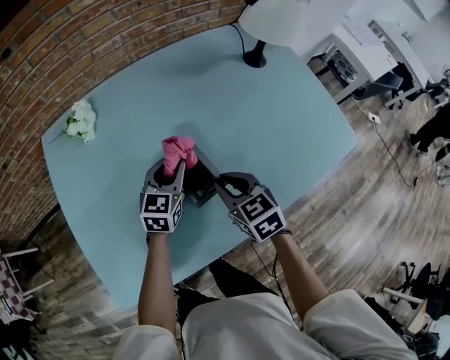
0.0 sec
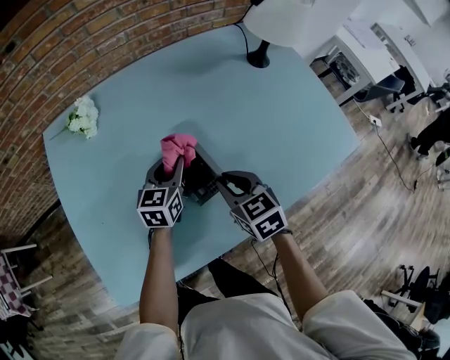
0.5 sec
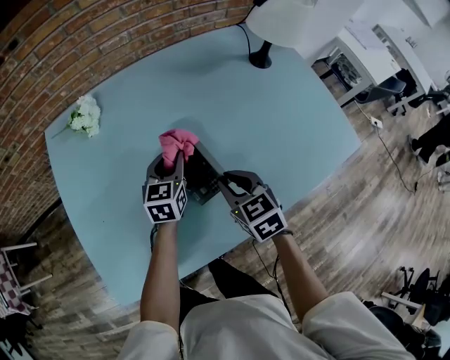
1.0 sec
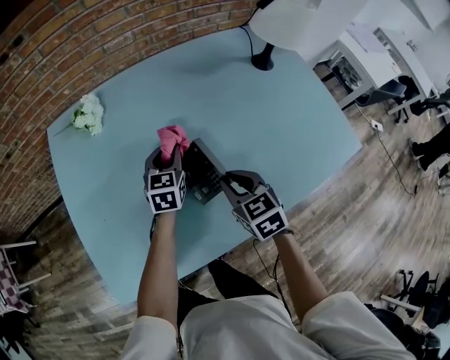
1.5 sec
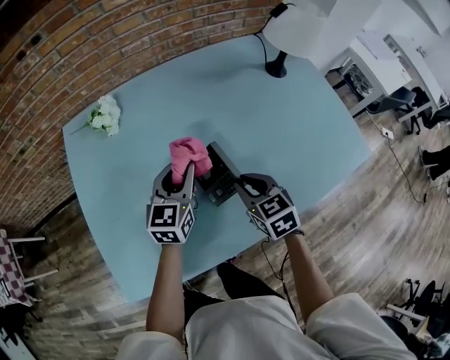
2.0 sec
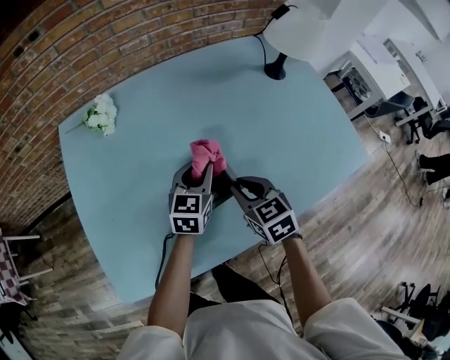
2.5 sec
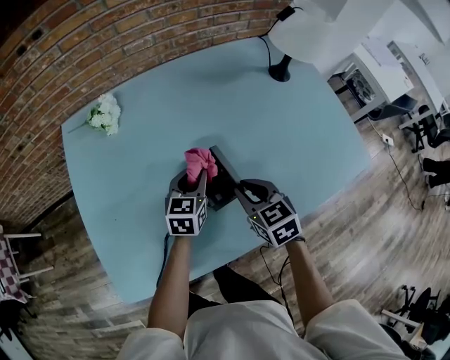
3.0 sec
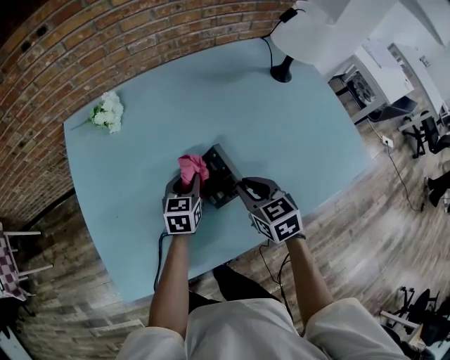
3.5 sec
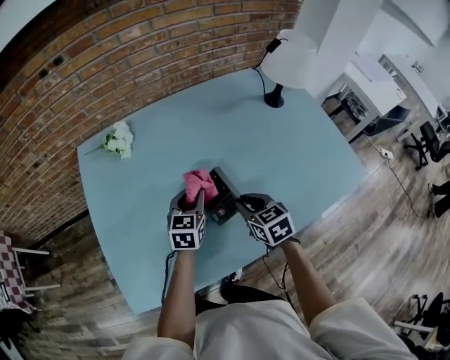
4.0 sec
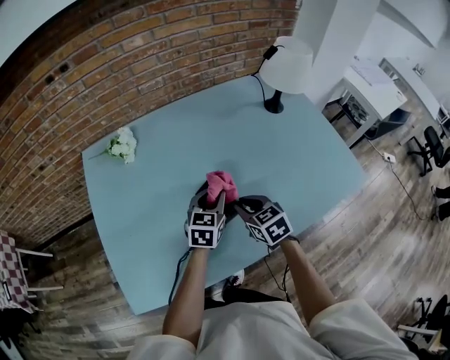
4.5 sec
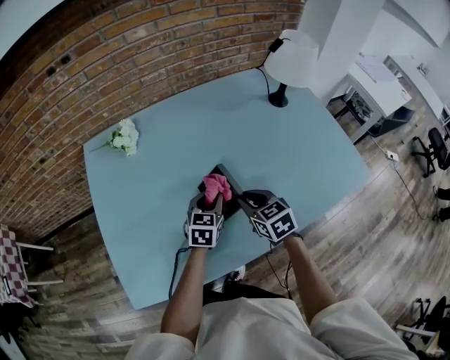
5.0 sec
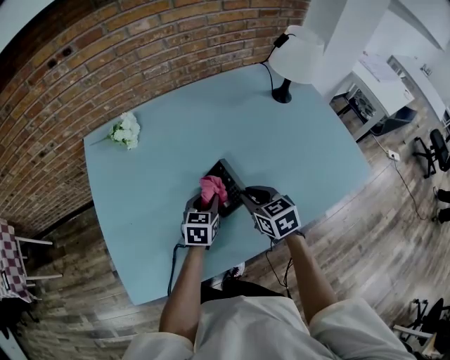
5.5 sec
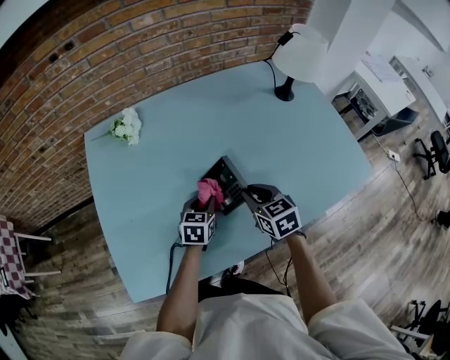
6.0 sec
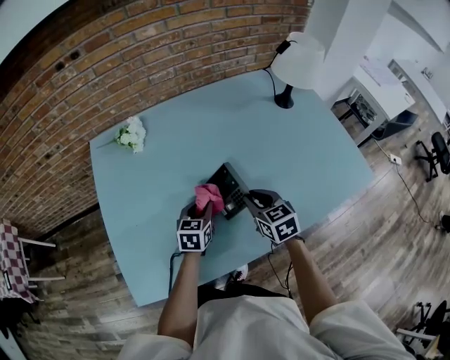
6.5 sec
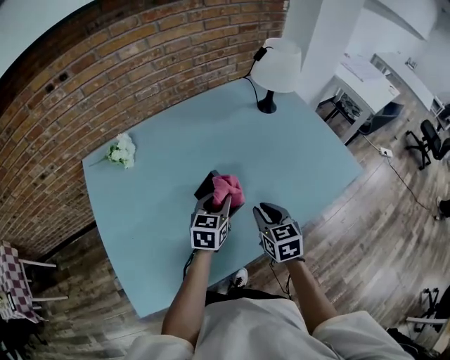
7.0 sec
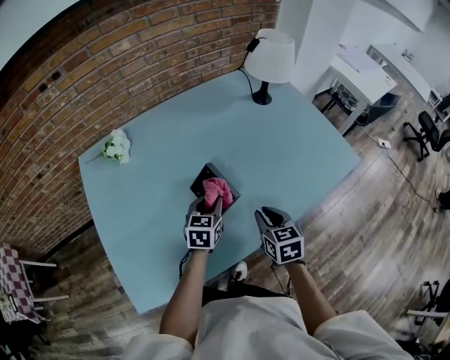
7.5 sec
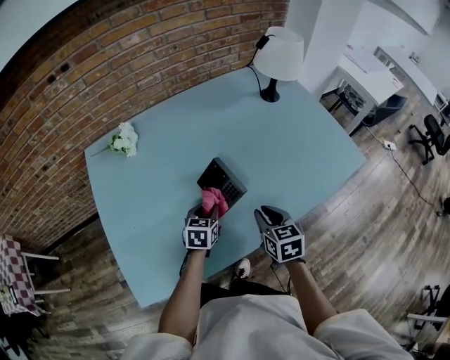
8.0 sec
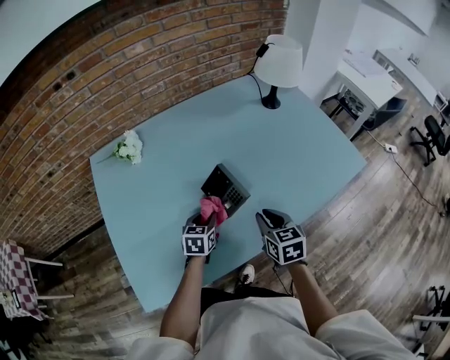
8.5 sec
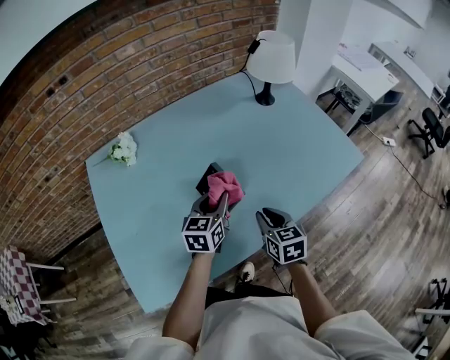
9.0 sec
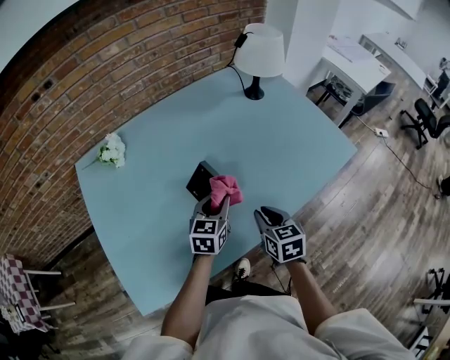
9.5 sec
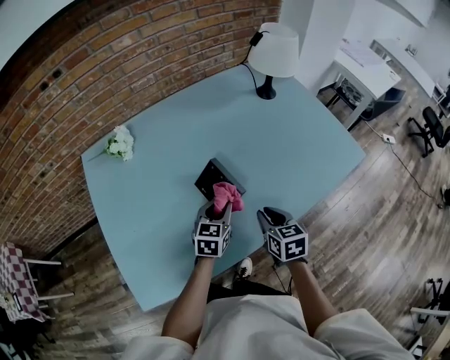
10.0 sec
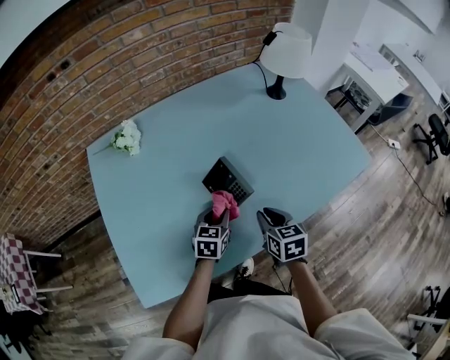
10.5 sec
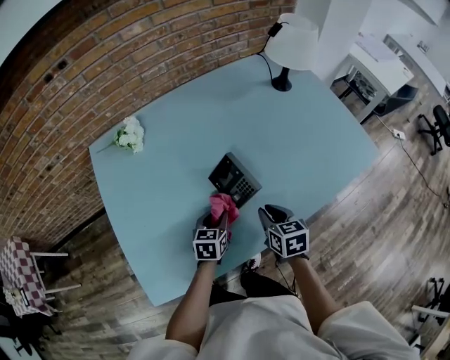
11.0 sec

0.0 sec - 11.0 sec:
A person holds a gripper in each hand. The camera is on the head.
0.0 sec - 2.0 sec: The left gripper is displaced upward by roughly 5 cm.
2.0 sec - 3.5 sec: The left gripper moves downward, approximately 10 cm.
3.5 sec - 5.5 sec: The left gripper moves some 10 cm upward and comes back.
5.5 sec - 7.5 sec: The right gripper goes roughly 10 cm backward and to the right, and changes its angle by roughly 20 degrees.
7.5 sec - 9.0 sec: The left gripper shifts approximately 5 cm upward.
9.0 sec - 11.0 sec: The left gripper travels downward and to the left by some 15 cm. Meanwhile the right gripper ends up about 5 cm from where it was.

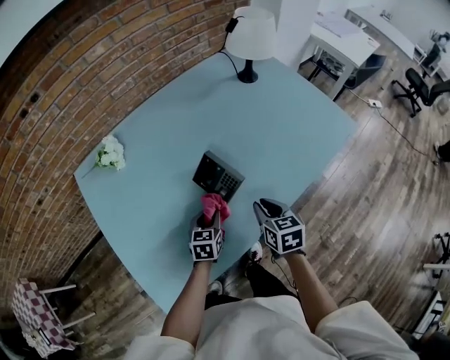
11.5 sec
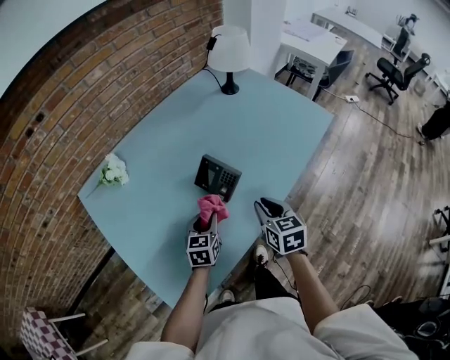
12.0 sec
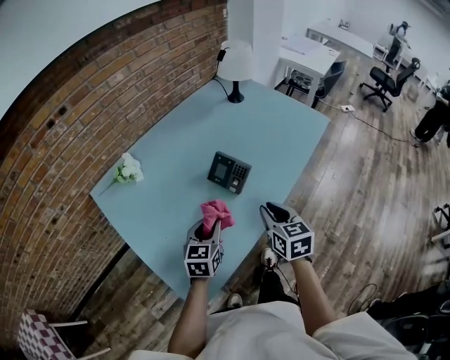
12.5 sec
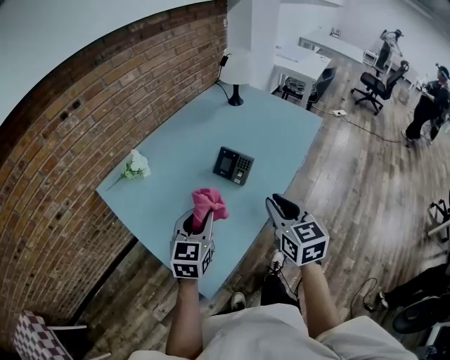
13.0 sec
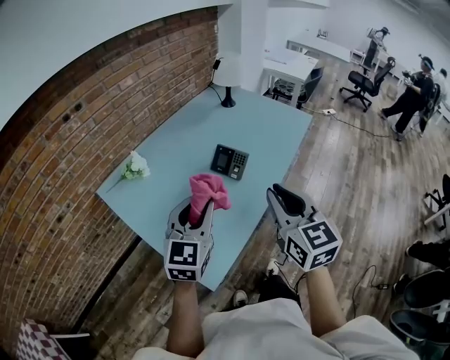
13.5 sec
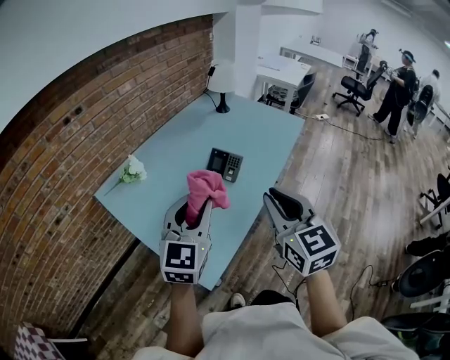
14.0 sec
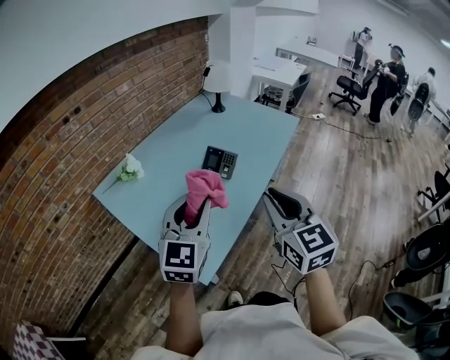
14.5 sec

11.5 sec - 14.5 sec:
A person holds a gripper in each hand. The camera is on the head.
11.5 sec - 13.0 sec: The left gripper goes roughly 30 cm upward, backward and to the left, and rotates roughly 30 degrees. Meanwhile the right gripper heads upward and backward, covering about 30 cm, and swivels roughly 30 degrees.
13.0 sec - 14.5 sec: The left gripper heads upward and backward, covering some 15 cm, while the right gripper moves backward and upward, roughly 15 cm.

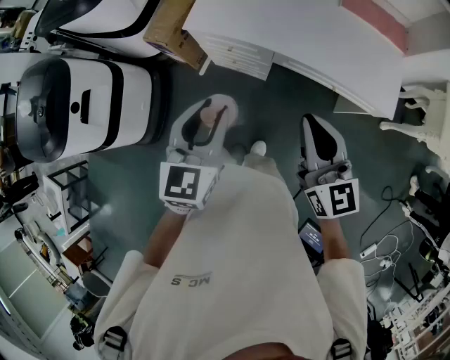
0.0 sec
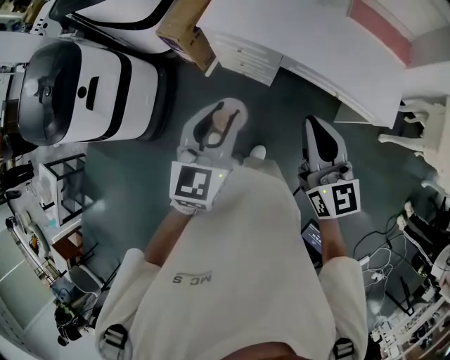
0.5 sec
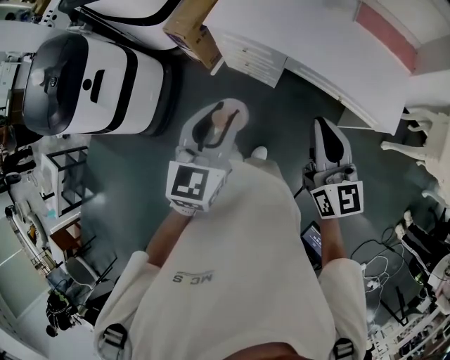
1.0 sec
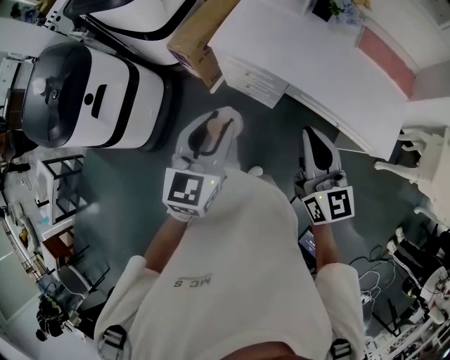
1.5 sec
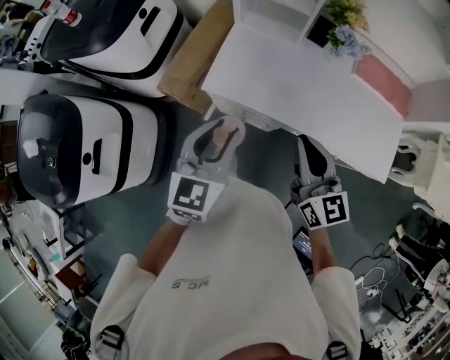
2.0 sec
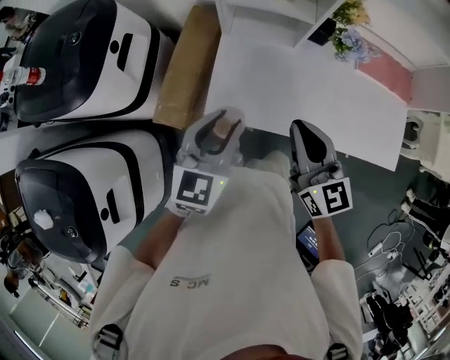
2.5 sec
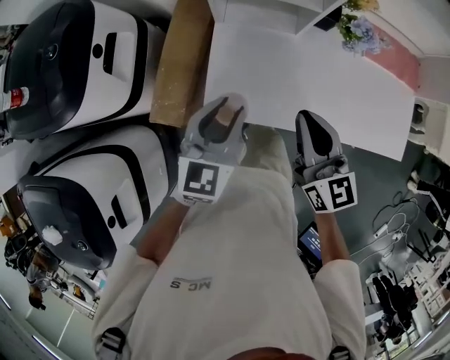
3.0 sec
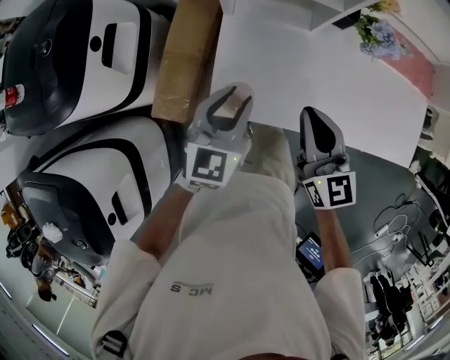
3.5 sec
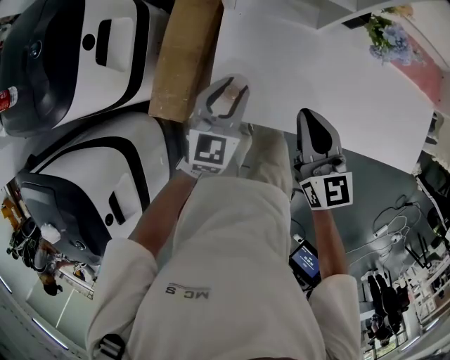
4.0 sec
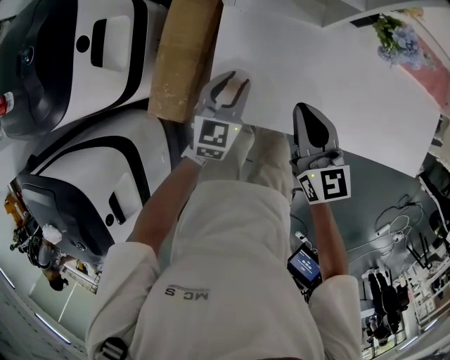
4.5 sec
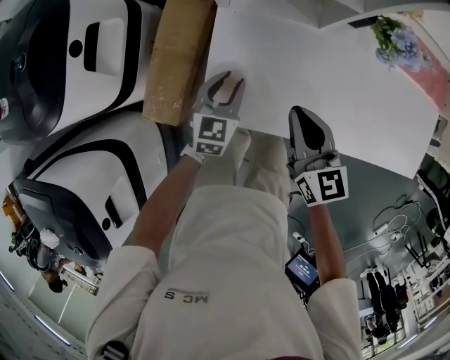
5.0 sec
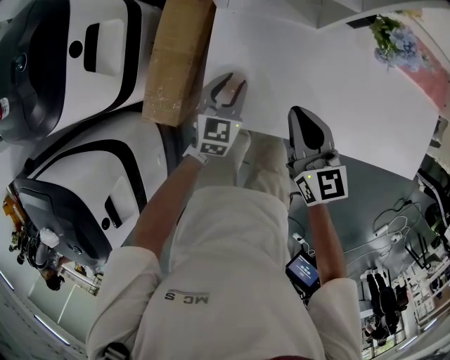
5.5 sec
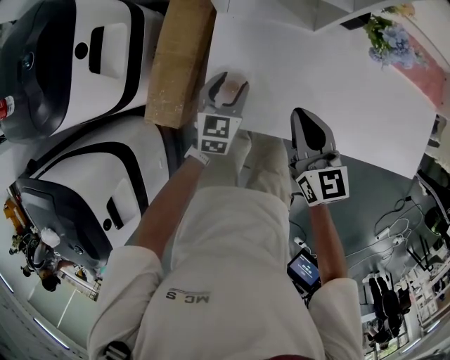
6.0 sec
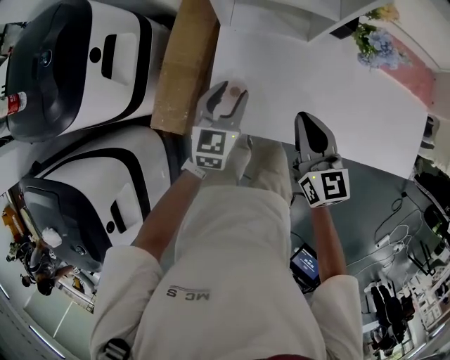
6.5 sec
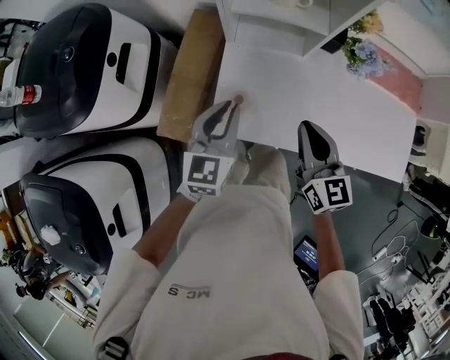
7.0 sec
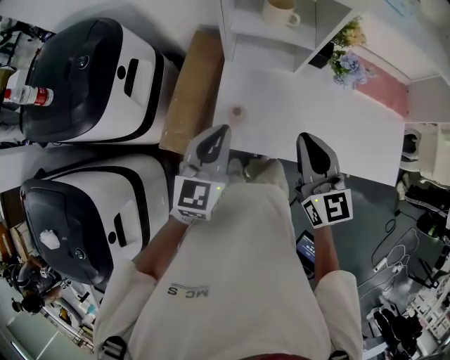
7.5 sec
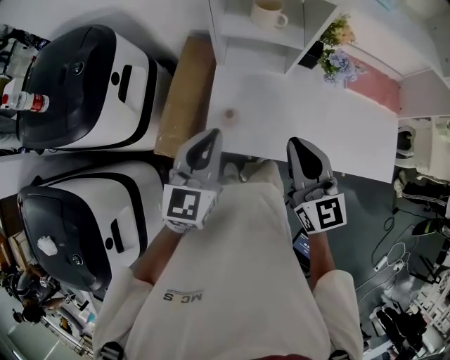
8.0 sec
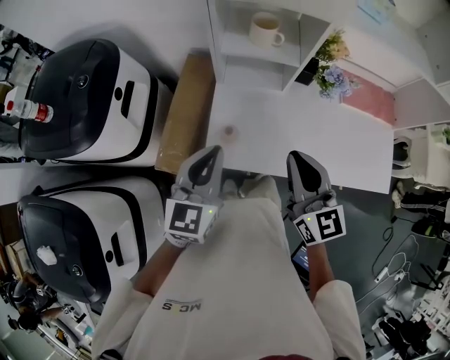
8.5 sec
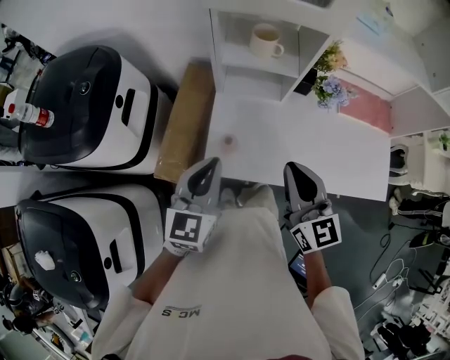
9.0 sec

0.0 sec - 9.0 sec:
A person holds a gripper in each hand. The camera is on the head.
0.0 sec - 2.0 sec: Both grippers move forward, some 20 cm.
2.0 sec - 4.5 sec: The left gripper shifts roughly 40 cm forward and downward. The right gripper shifts about 35 cm forward, downward and to the left.
4.5 sec - 7.0 sec: The right gripper goes about 10 cm upward. Meanwhile the left gripper is displaced upward by roughly 15 cm, and opens, then closes again.
7.0 sec - 9.0 sec: Both grippers travel together upward and backward, some 10 cm.

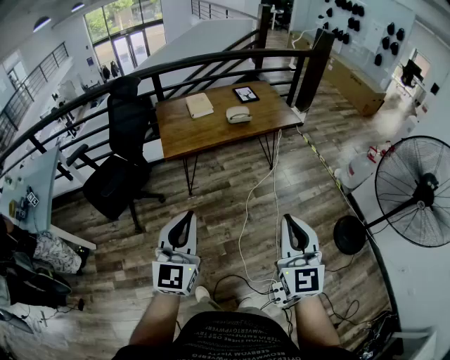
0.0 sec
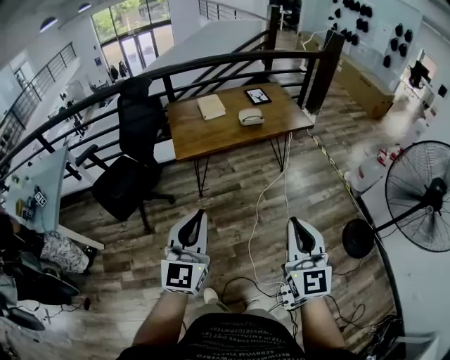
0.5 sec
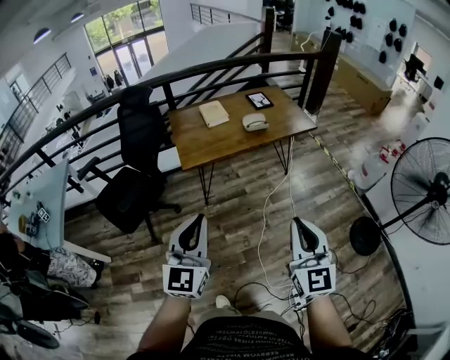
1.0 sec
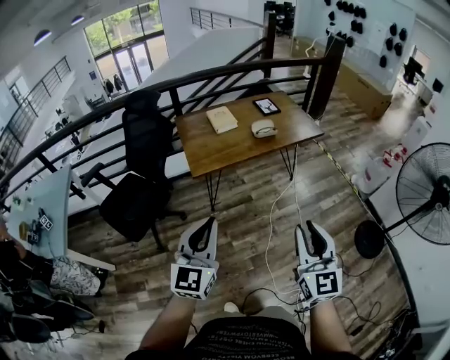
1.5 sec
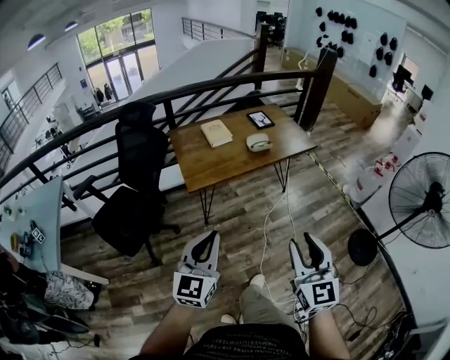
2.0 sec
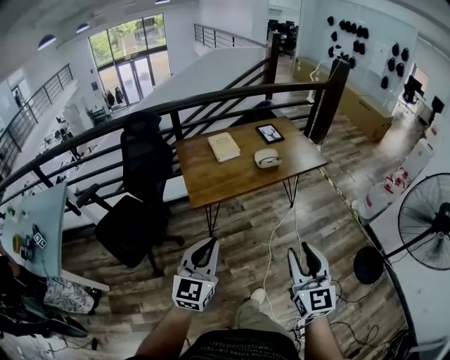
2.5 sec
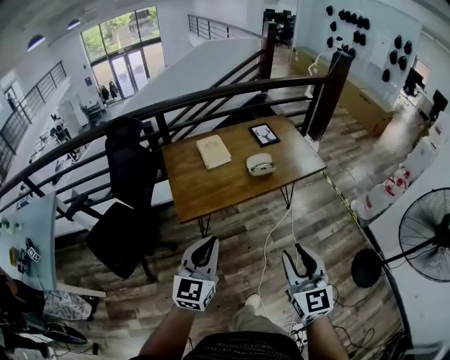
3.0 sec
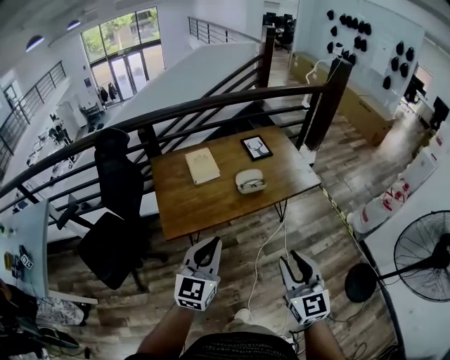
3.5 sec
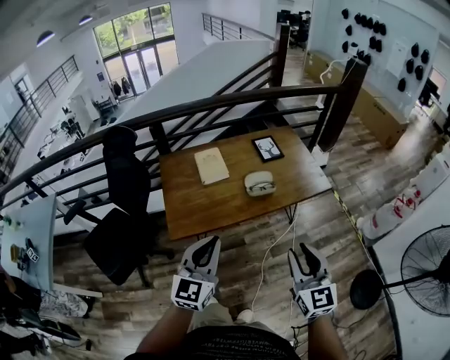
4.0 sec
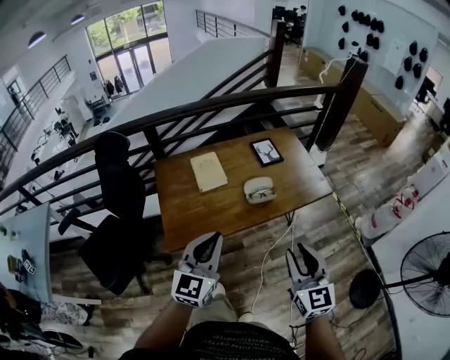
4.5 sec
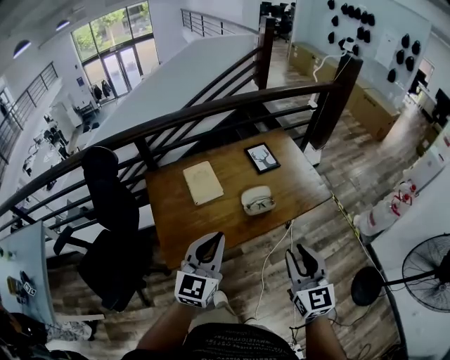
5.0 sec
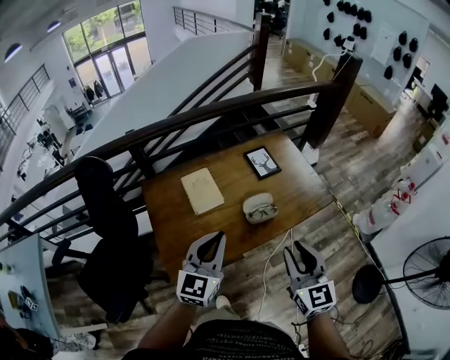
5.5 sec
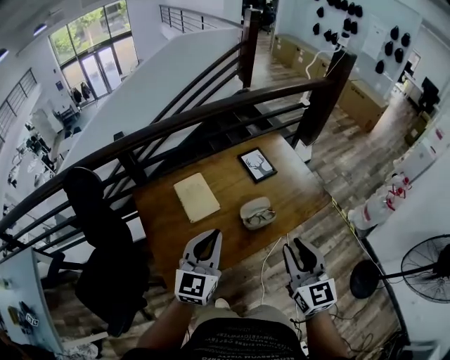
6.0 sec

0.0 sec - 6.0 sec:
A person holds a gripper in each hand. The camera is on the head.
0.0 sec - 2.0 sec: Both grippers travel together to the left and forward, about 15 cm. The right gripper opens up.
2.0 sec - 4.0 sec: The two grippers go approximately 30 cm forward.
4.0 sec - 6.0 sec: Both grippers move forward, about 25 cm.
